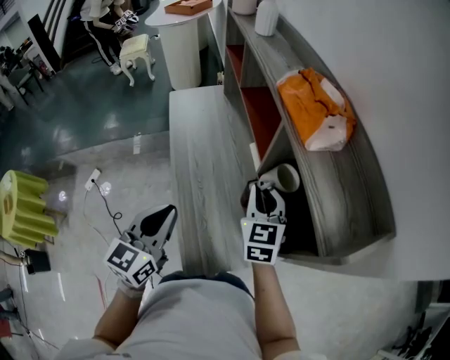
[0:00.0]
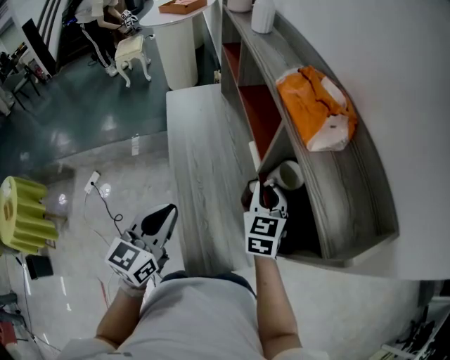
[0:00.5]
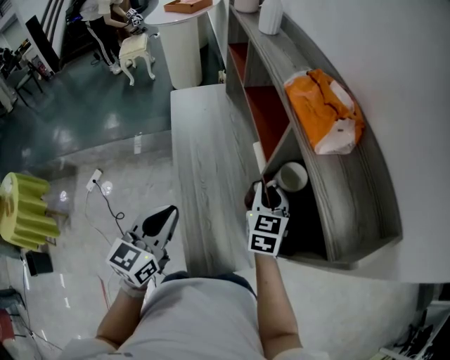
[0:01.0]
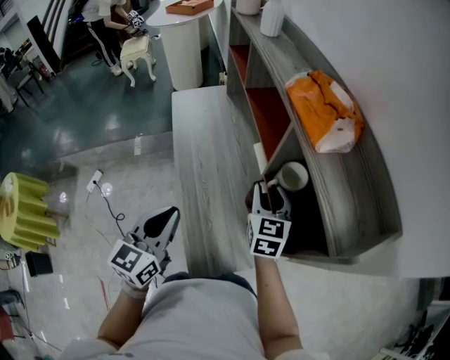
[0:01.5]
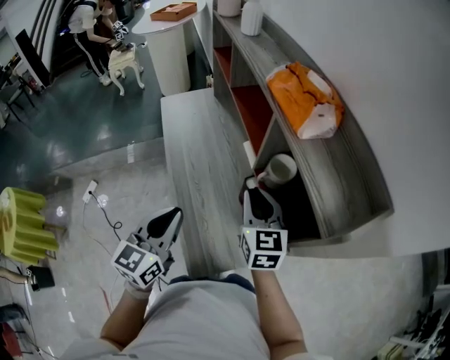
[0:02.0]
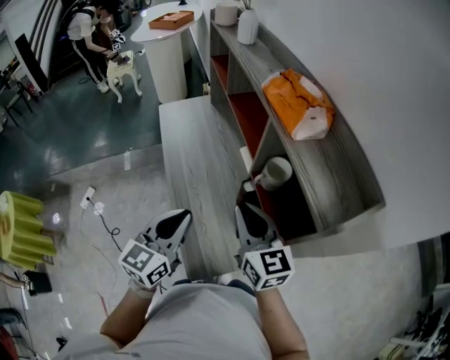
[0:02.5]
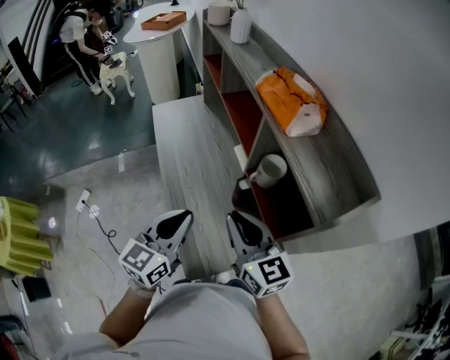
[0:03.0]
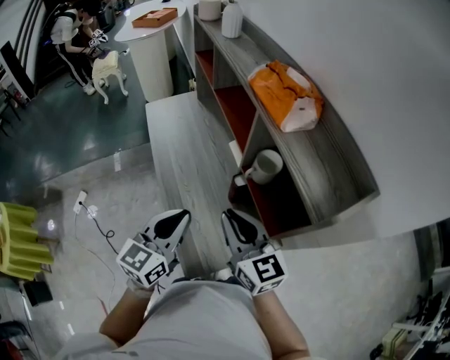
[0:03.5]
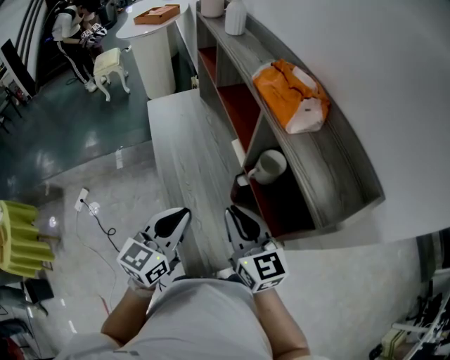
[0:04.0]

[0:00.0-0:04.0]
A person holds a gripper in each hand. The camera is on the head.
0.0 to 2.0 s: The grippers make only small movements.
2.0 to 4.0 s: The right gripper travels backward by some 5 cm.

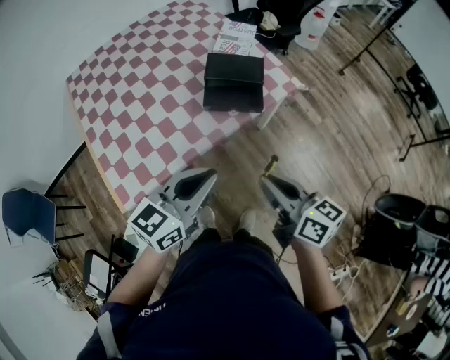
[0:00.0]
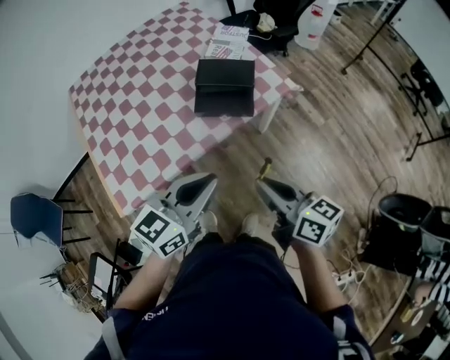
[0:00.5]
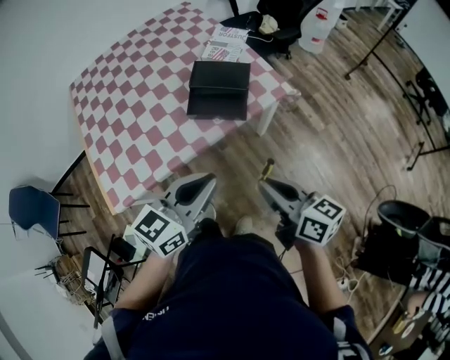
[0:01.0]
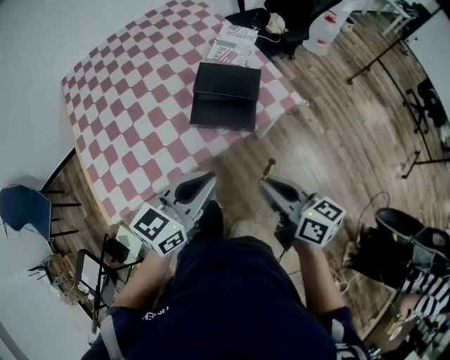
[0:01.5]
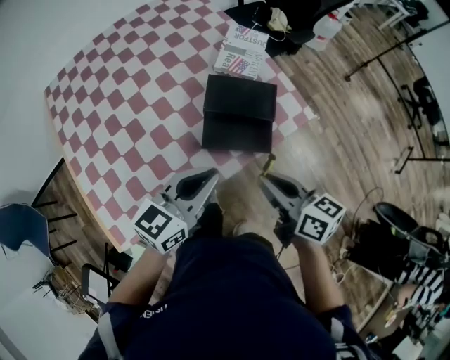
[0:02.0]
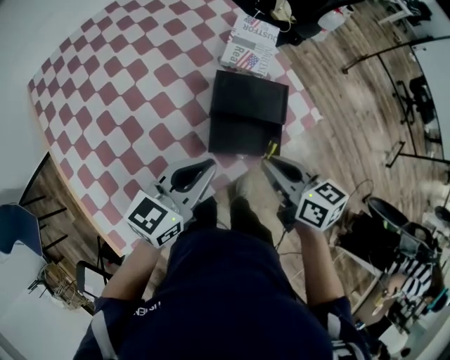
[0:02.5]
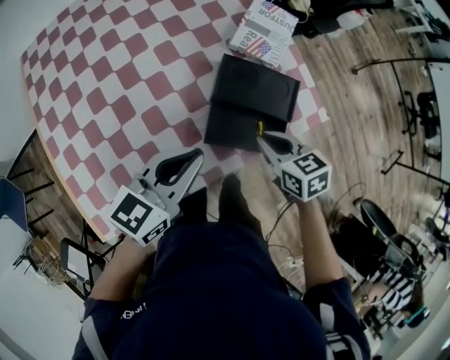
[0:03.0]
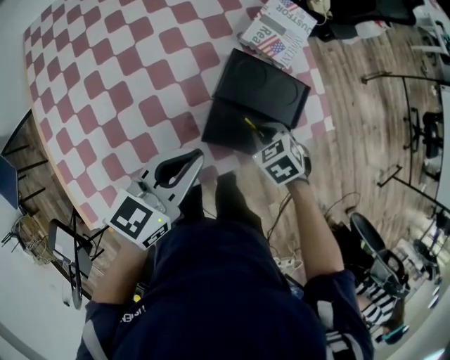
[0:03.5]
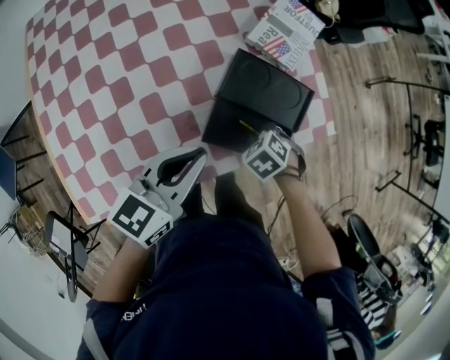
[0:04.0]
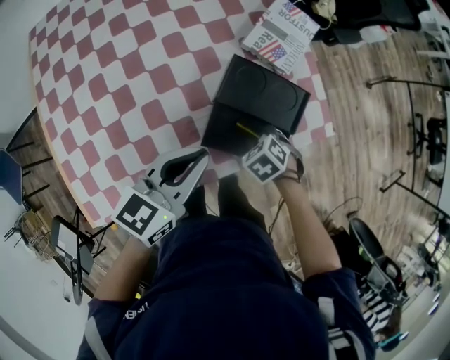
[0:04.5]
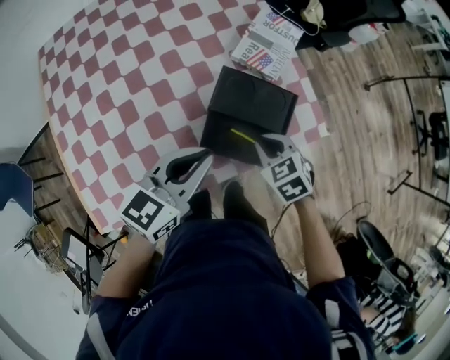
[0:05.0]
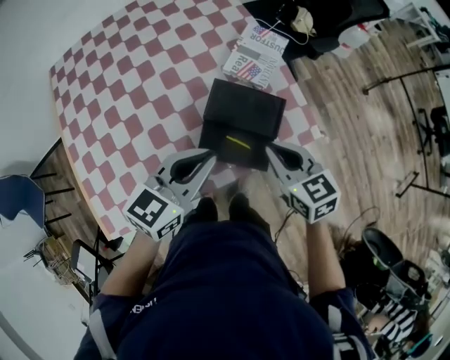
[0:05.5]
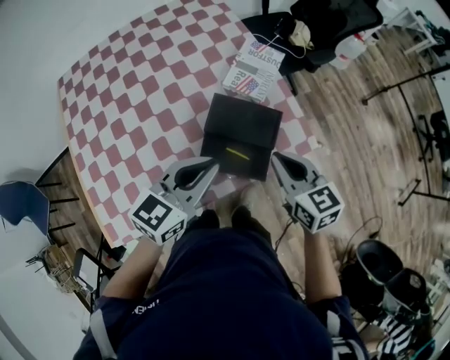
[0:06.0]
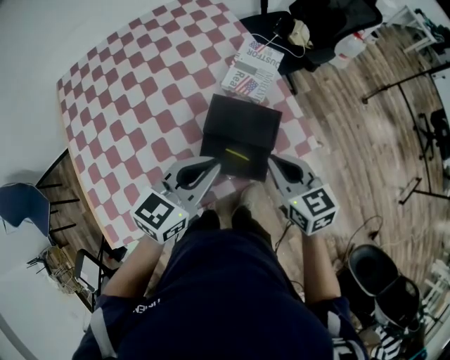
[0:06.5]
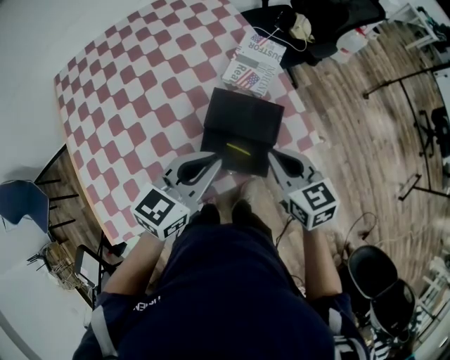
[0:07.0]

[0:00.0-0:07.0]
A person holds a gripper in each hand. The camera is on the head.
0.0 to 2.0 s: Both grippers travel together forward, some 20 cm.
2.0 to 3.5 s: The left gripper travels forward, downward and to the left by roughly 10 cm, while the right gripper is displaced downward and forward by some 25 cm, and tilts its fingers some 50 degrees downward.
3.5 to 5.0 s: The right gripper shifts some 5 cm upward. Meanwhile the left gripper ends up roughly 5 cm from where it was.
5.0 to 7.0 s: The left gripper shifts by approximately 5 cm; the right gripper shifts approximately 15 cm upward, and changes its angle by some 30 degrees.

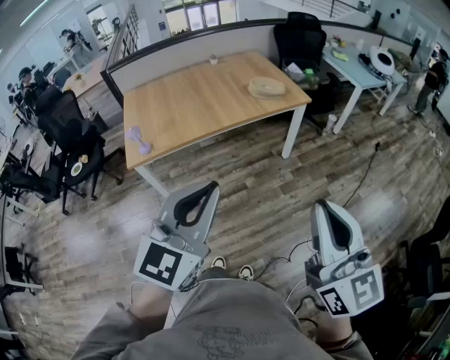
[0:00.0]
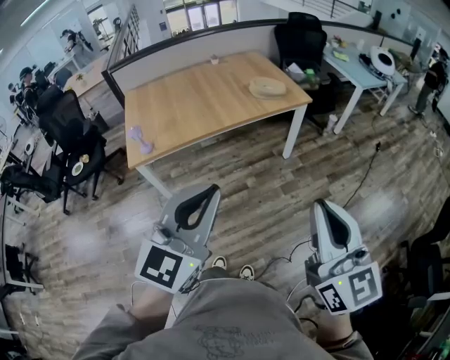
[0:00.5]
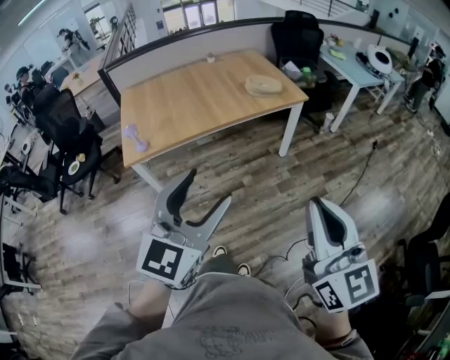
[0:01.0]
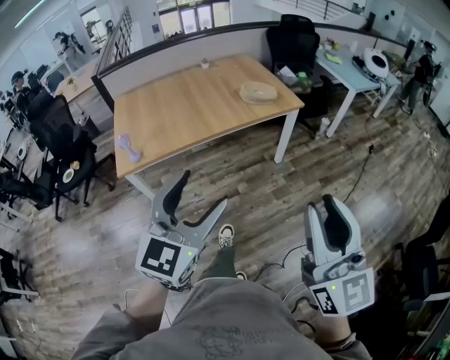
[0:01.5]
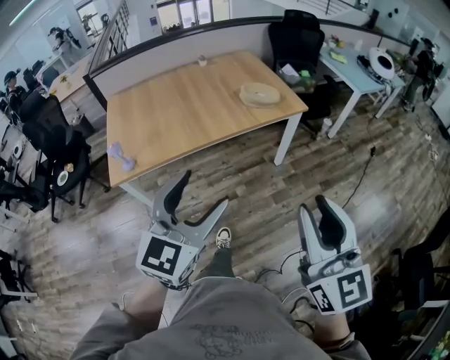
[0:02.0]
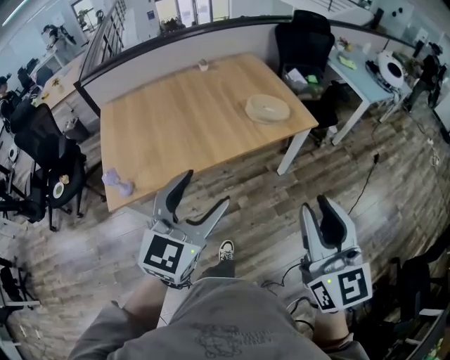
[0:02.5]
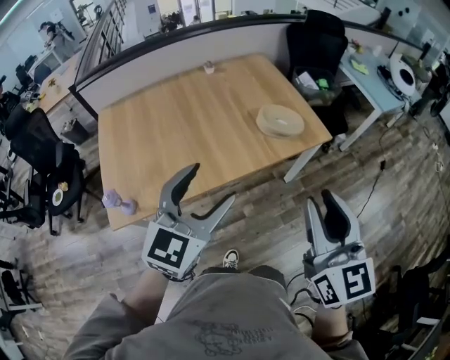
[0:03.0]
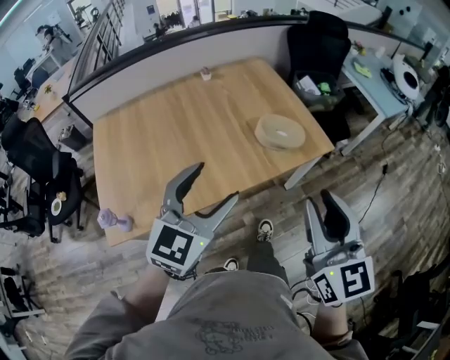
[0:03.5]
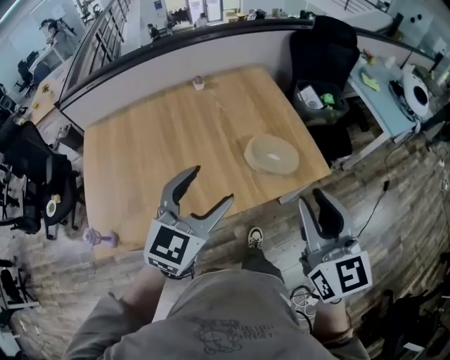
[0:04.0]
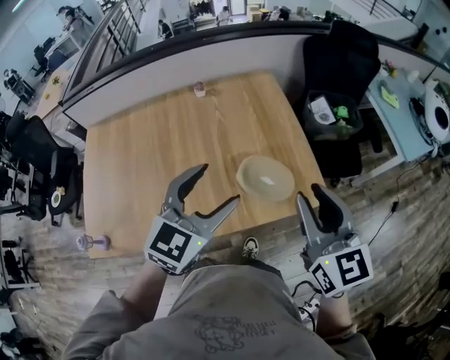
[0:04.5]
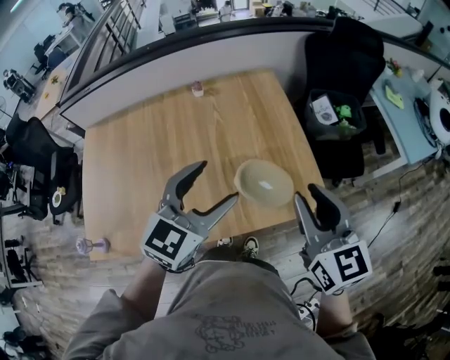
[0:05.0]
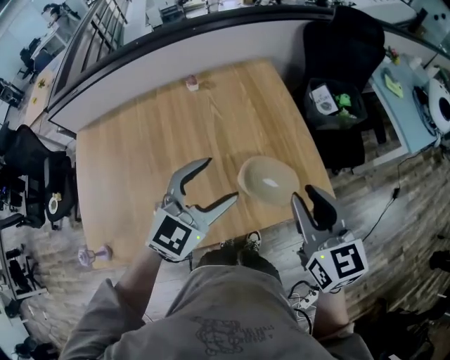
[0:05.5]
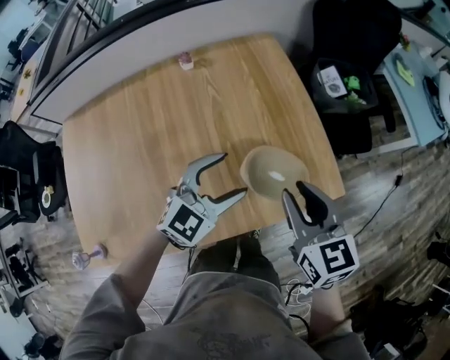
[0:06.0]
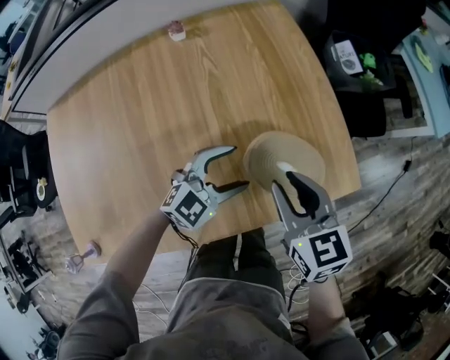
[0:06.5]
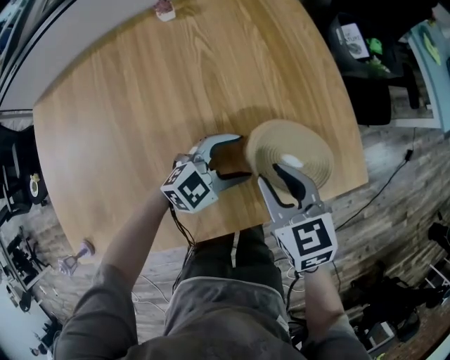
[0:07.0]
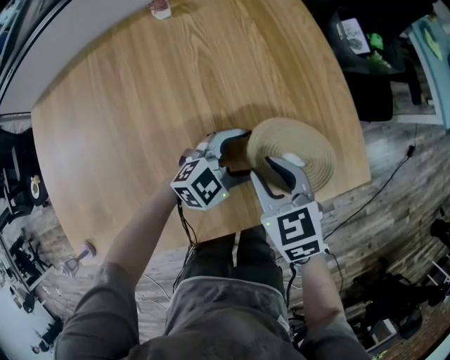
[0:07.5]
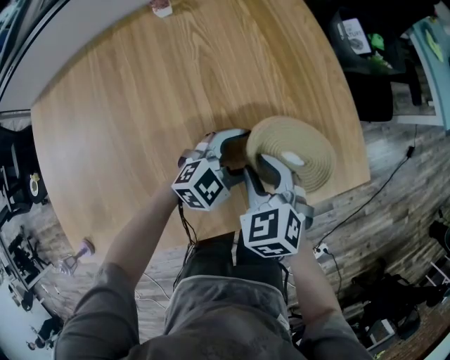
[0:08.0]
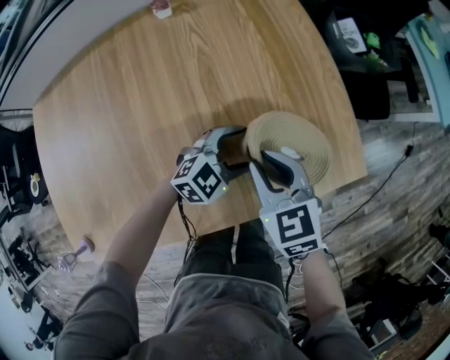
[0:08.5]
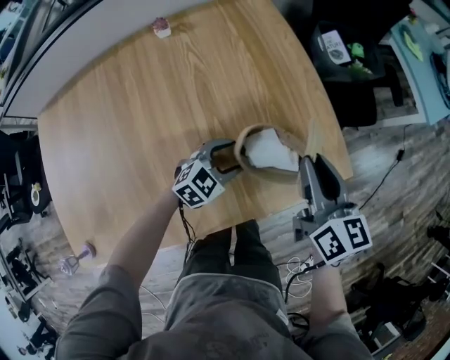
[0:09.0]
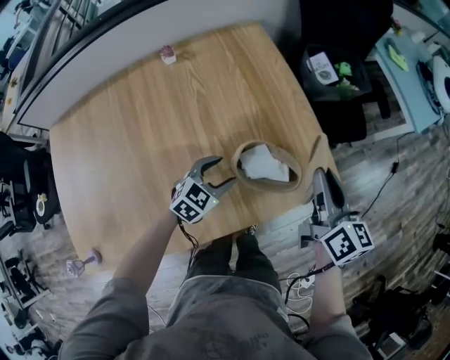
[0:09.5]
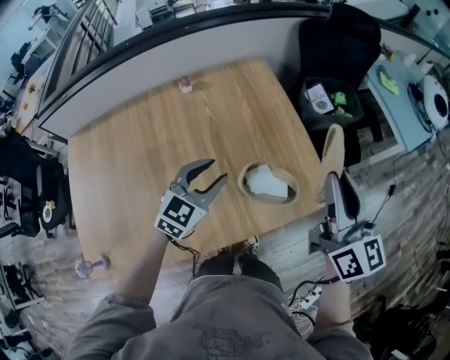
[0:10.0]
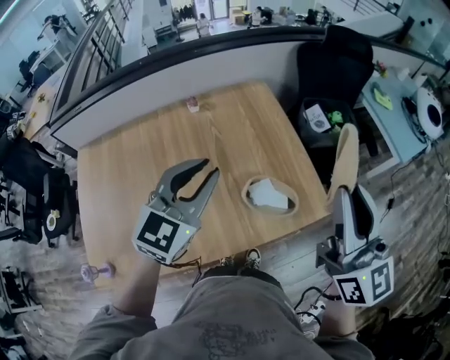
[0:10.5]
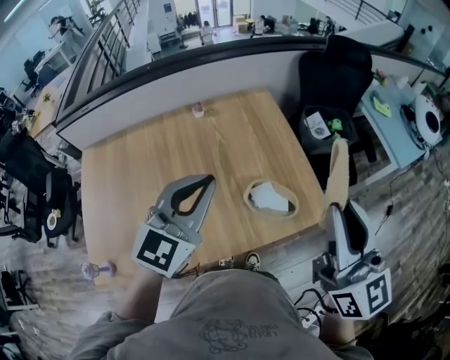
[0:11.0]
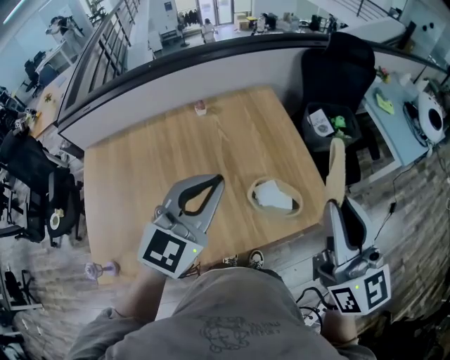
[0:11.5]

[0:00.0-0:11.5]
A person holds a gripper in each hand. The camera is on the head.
0.0 to 2.0 s: The grippers both shift forward by some 15 cm. The right gripper opens its fingers, while the left gripper opens.
2.0 to 4.0 s: The pair of grippers is taken forward, roughly 50 cm.
4.0 to 6.0 s: Both grippers travel together forward and downward, approximately 25 cm. The right gripper turns by roughly 20 degrees.
6.0 to 7.5 s: The two grippers go approximately 20 cm downward. The left gripper rotates roughly 20 degrees, while the right gripper swivels about 20 degrees.
7.5 to 9.5 s: The right gripper goes some 25 cm to the right and upward, and points its fingers approximately 30 degrees further upward. The left gripper ends up some 5 cm from where it was, and rotates about 20 degrees.
9.5 to 11.5 s: The right gripper shifts about 30 cm upward and backward, and swivels some 30 degrees, while the left gripper is displaced upward by some 40 cm, swivels approximately 30 degrees, and closes up.

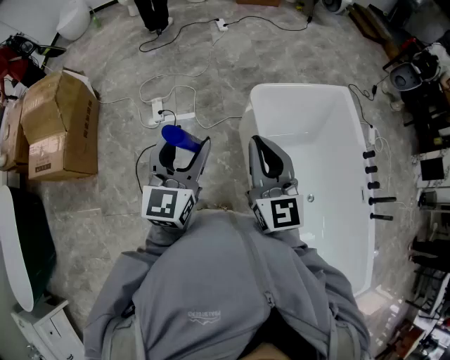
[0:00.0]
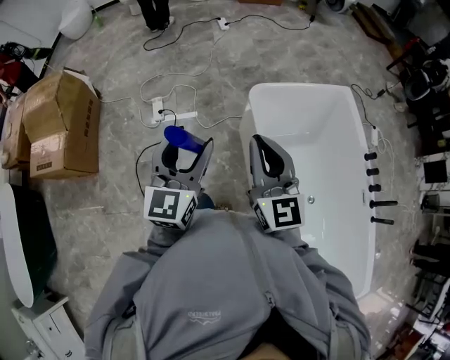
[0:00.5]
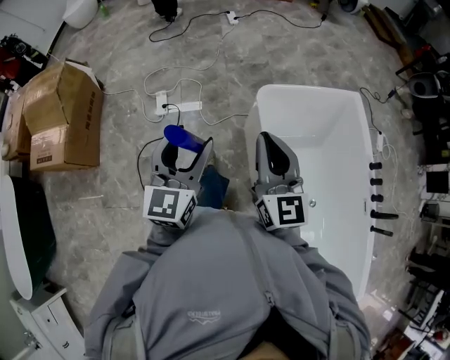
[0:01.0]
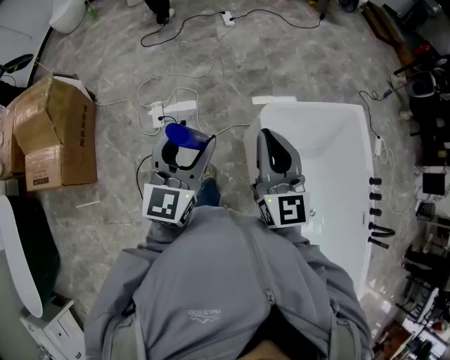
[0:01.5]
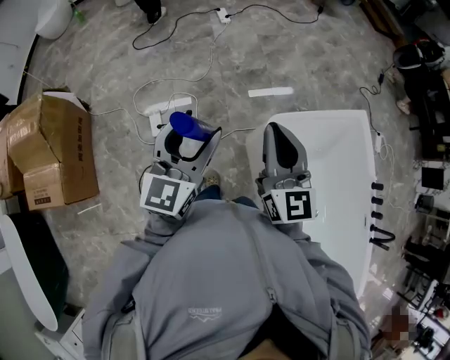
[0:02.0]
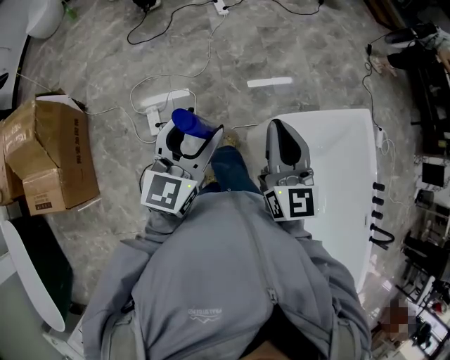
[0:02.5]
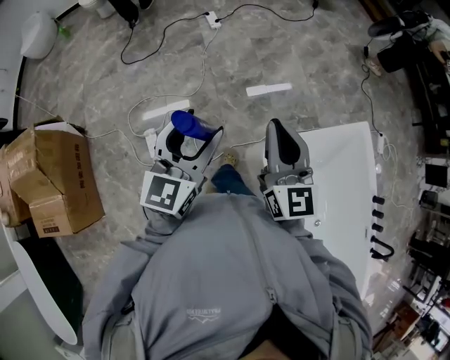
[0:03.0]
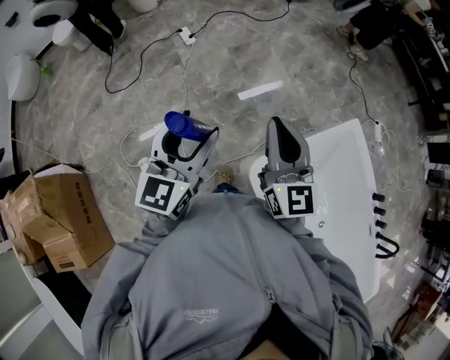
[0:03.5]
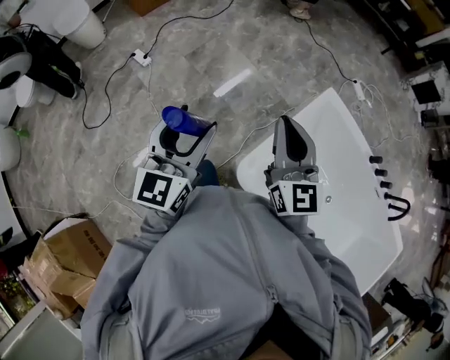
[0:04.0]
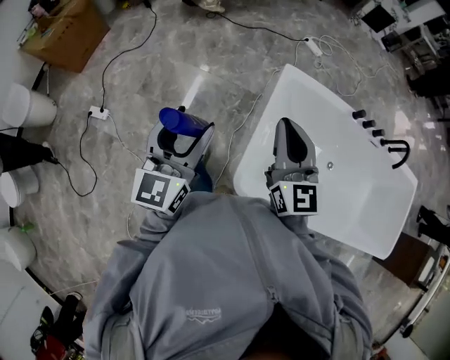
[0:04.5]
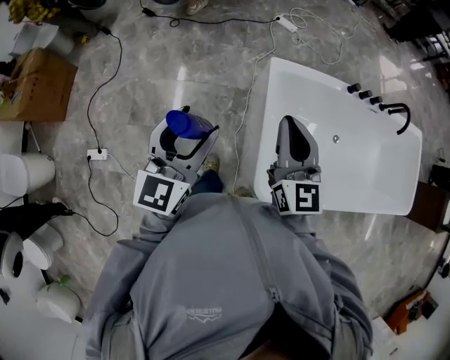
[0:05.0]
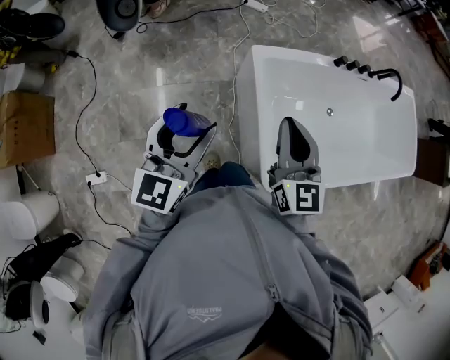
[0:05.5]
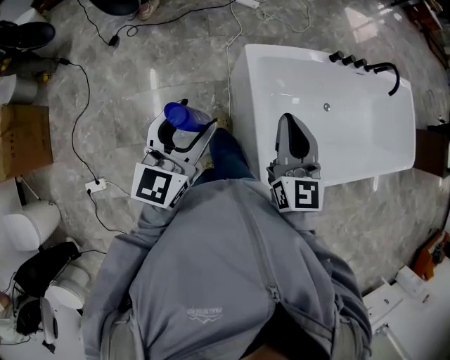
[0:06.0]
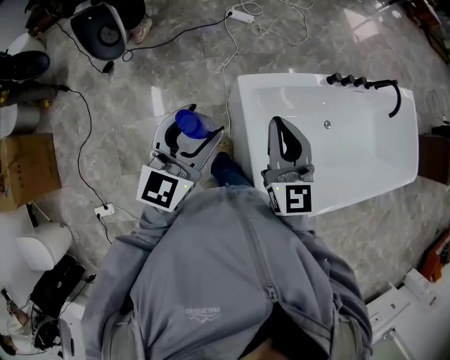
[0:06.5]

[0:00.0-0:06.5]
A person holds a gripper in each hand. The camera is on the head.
0.0 to 2.0 s: The two grippers go approximately 35 cm forward.
2.0 to 4.5 s: Both grippers are carried about 50 cm. The left gripper rotates approximately 50 degrees; the right gripper turns by approximately 60 degrees.
4.5 to 6.5 s: The right gripper ends up about 25 cm from where it was, and turns by about 30 degrees; the left gripper moves approximately 35 cm, and turns by approximately 40 degrees.
